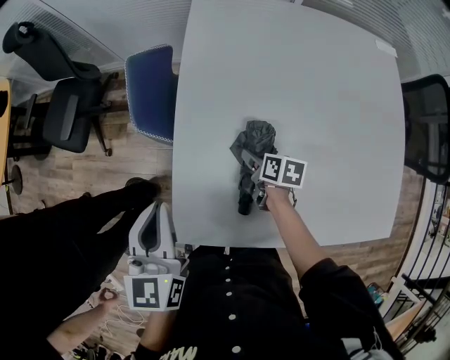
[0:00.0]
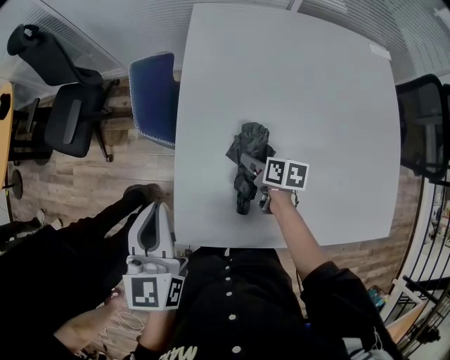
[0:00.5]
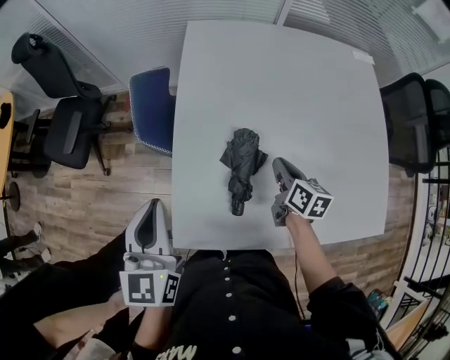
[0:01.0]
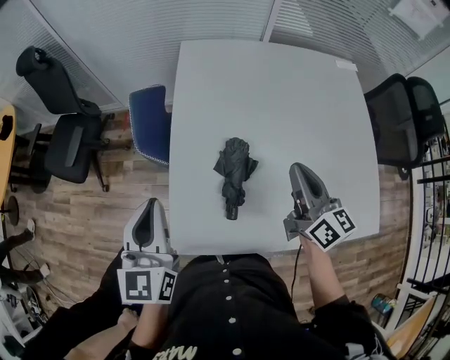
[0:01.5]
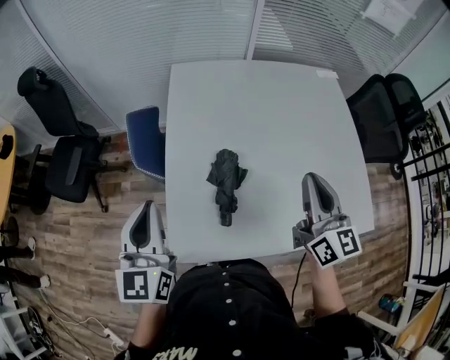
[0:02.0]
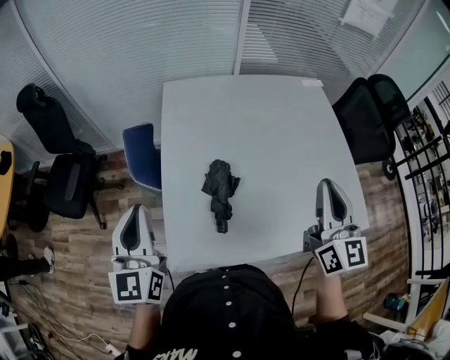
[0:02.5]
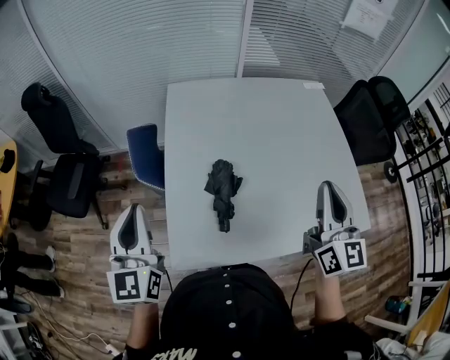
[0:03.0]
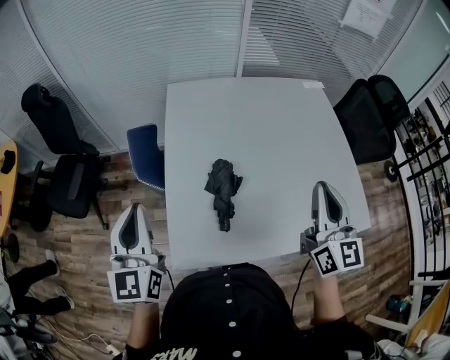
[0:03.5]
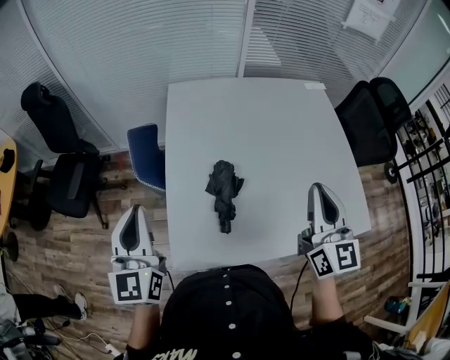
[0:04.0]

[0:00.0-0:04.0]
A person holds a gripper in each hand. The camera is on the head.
0:00.0 to 0:02.0: The right gripper shifts roughly 35 cm upward, points its fingers some 50 degrees further upward, and closes. The left gripper is displaced upward by roughly 10 cm.
0:02.0 to 0:04.0: The right gripper ends up some 5 cm from where it was.

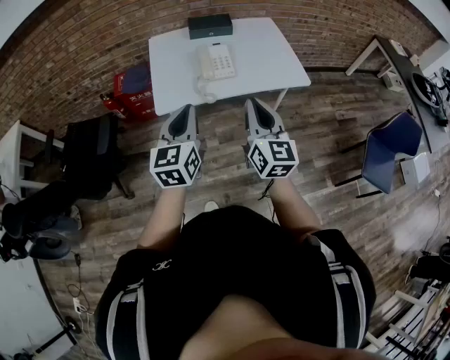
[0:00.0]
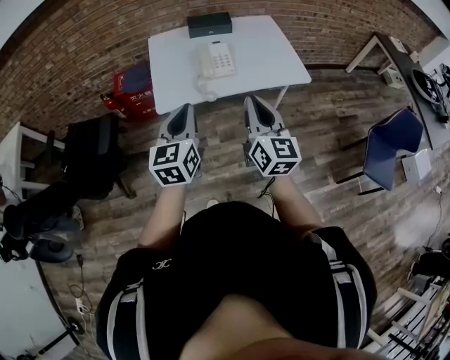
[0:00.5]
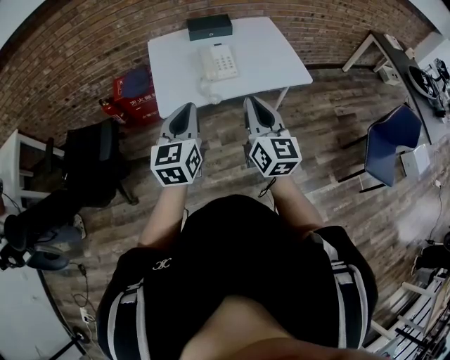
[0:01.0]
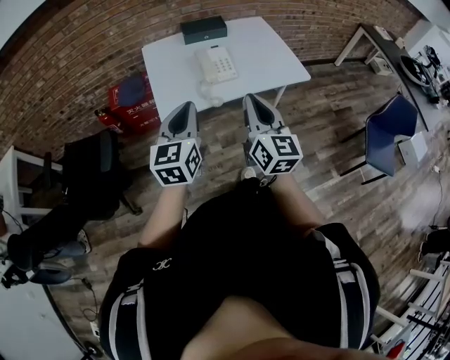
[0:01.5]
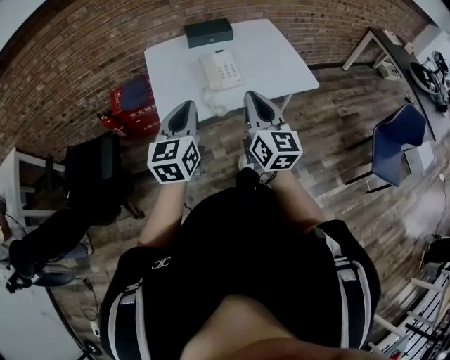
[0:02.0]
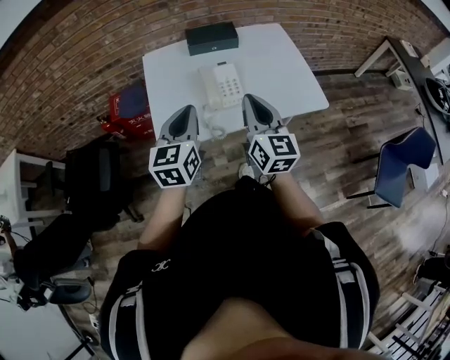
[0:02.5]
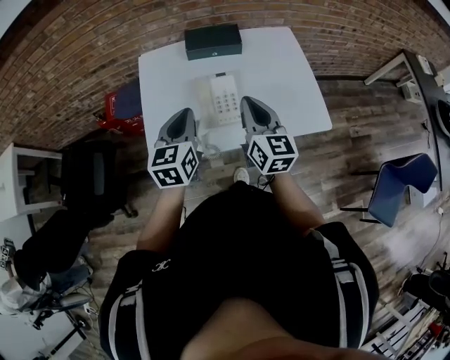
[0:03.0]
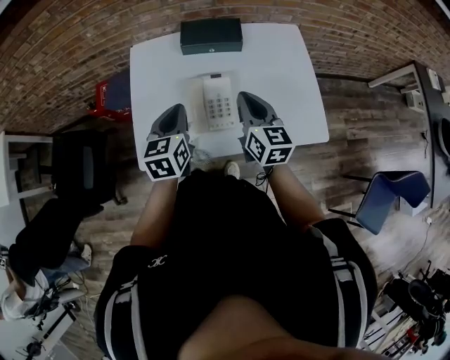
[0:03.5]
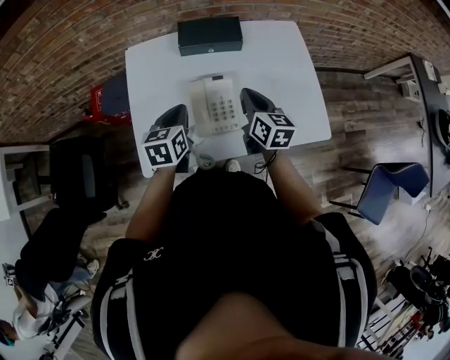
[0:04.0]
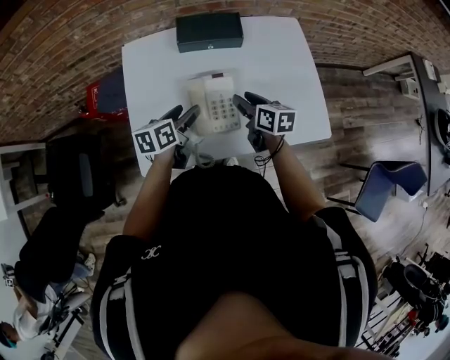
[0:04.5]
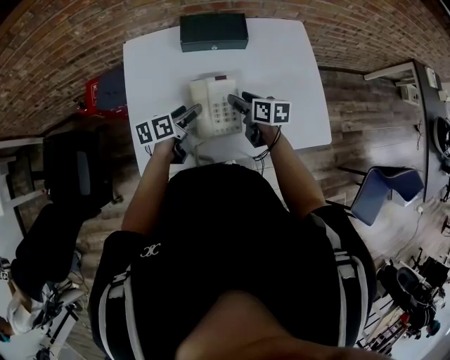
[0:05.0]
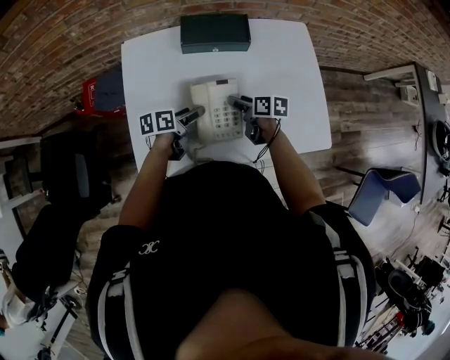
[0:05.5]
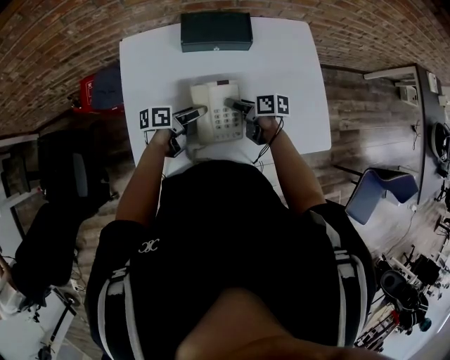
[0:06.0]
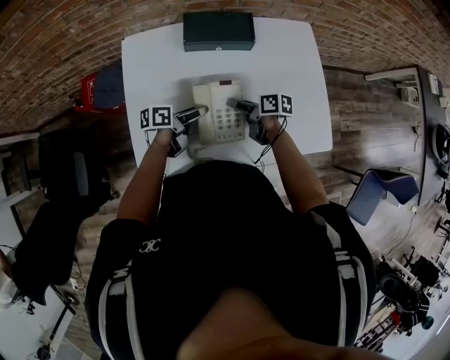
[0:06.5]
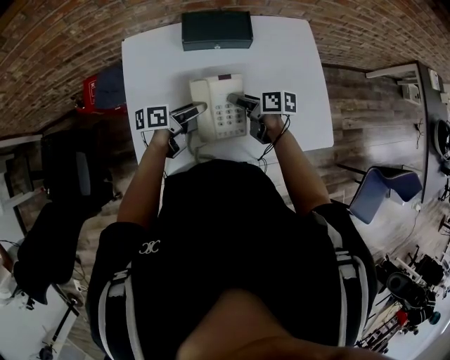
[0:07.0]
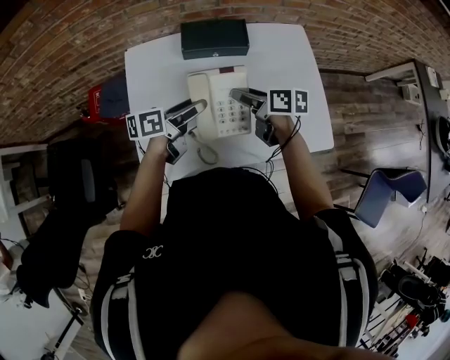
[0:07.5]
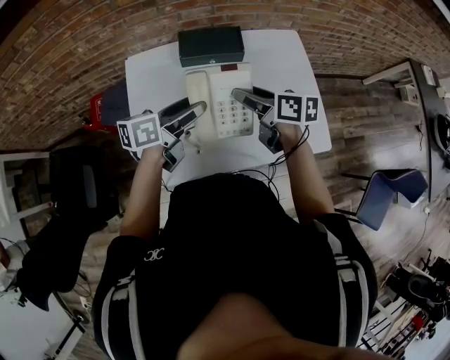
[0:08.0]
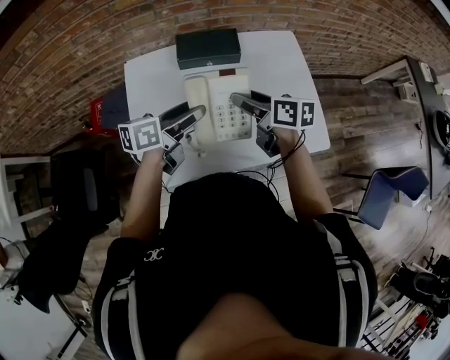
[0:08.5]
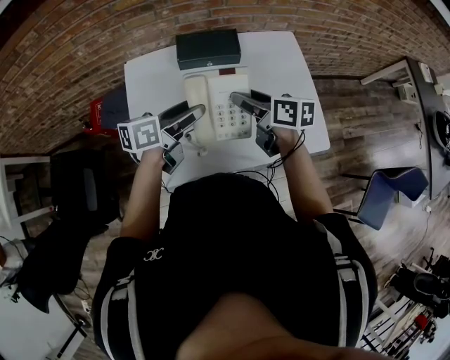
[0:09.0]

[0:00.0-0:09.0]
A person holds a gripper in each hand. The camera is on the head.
0:00.0 to 0:02.0: Both grippers travel together forward and to the left, roughly 10 cm.
0:02.0 to 0:04.5: The grippers both shift forward and downward by about 40 cm. The left gripper rotates approximately 40 degrees, and opens, while the right gripper angles its fingers downward, by about 30 degrees, and opens its fingers.
0:04.5 to 0:07.0: The right gripper heads downward, covering roughly 5 cm, and changes its angle by roughly 20 degrees; the left gripper turns by about 30 degrees.
0:07.0 to 0:09.0: Both grippers move upward, roughly 15 cm. The left gripper changes its angle by about 20 degrees.

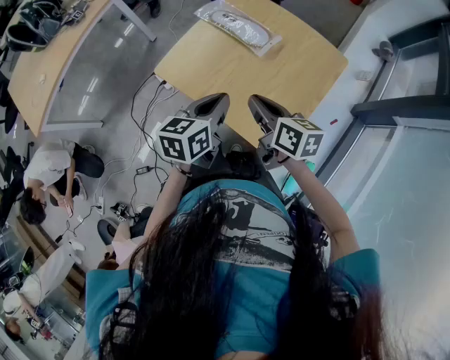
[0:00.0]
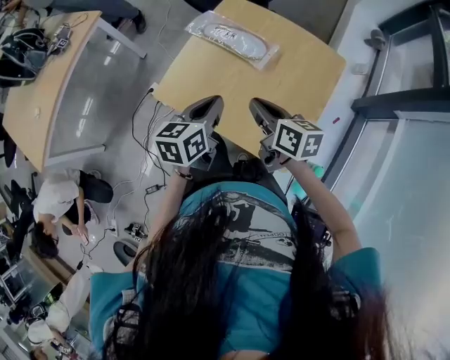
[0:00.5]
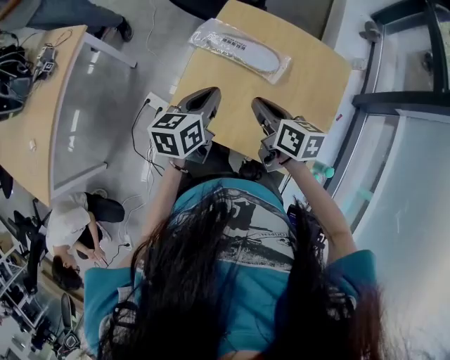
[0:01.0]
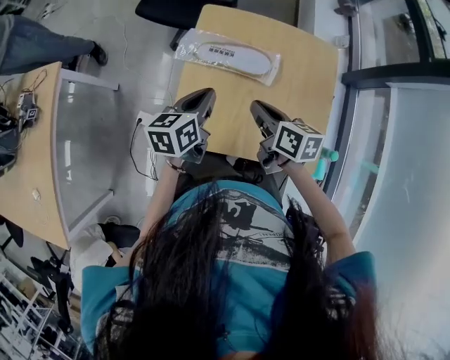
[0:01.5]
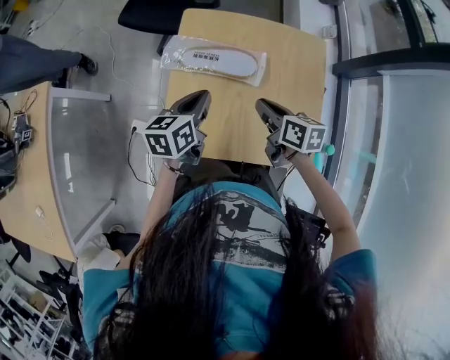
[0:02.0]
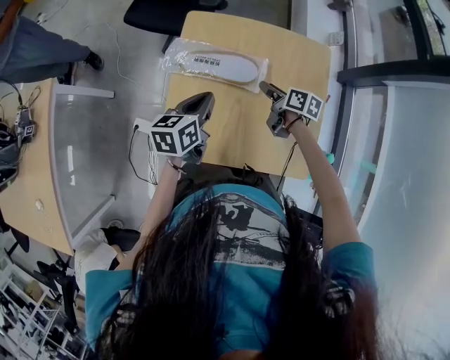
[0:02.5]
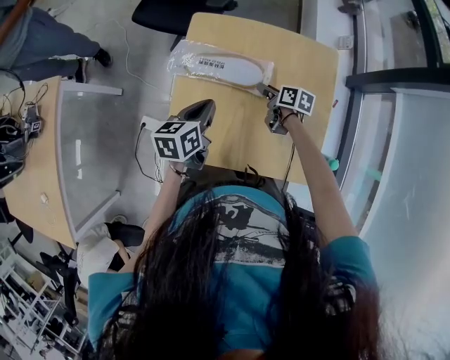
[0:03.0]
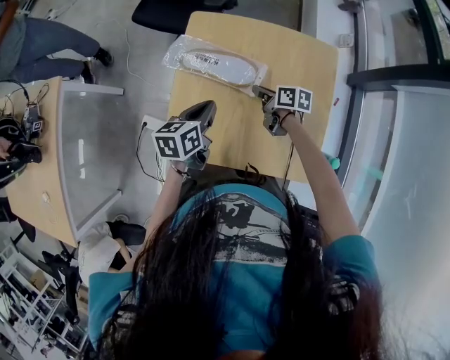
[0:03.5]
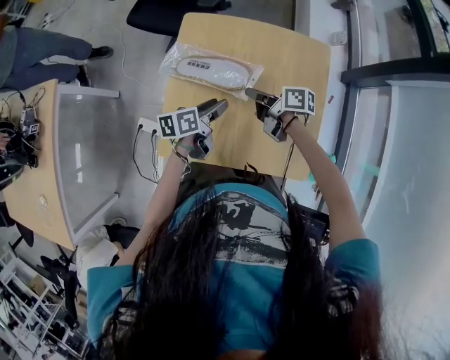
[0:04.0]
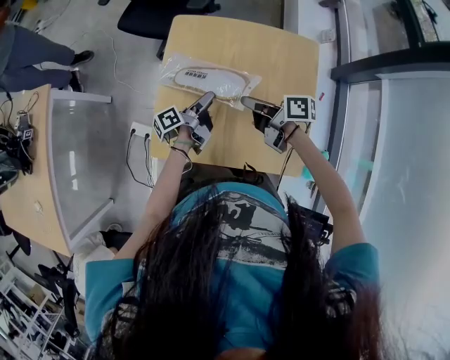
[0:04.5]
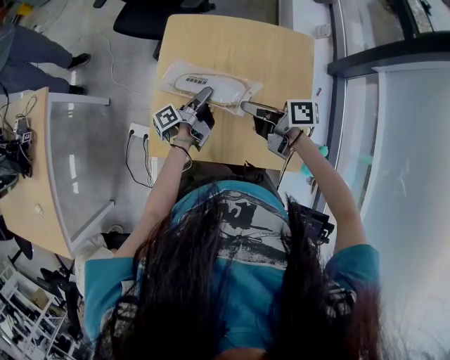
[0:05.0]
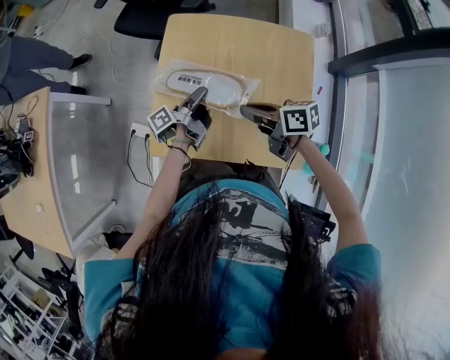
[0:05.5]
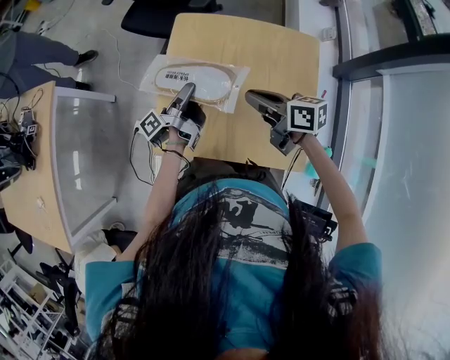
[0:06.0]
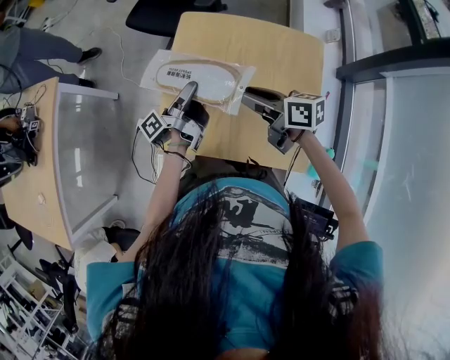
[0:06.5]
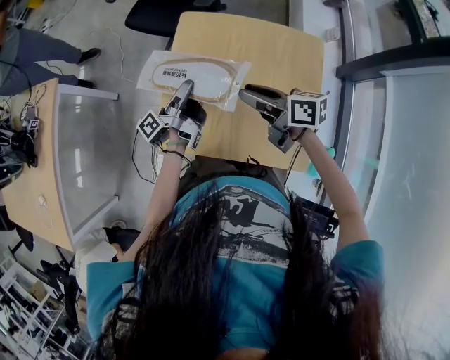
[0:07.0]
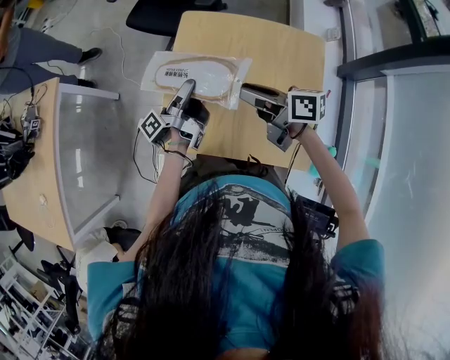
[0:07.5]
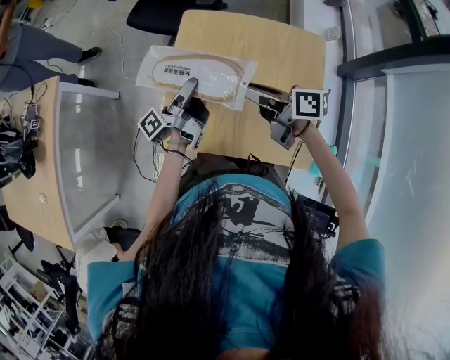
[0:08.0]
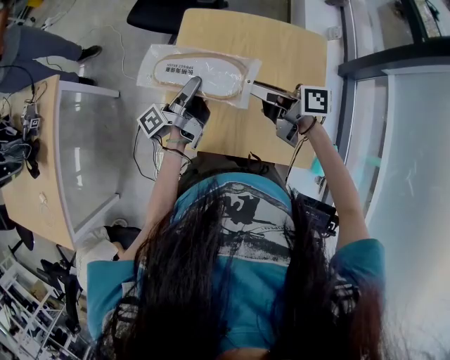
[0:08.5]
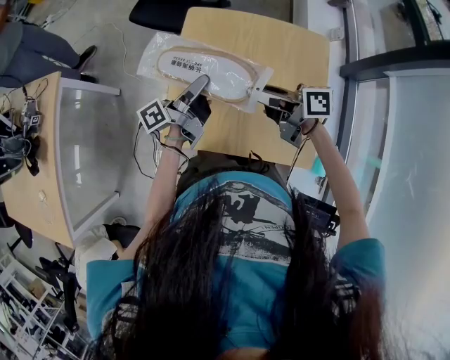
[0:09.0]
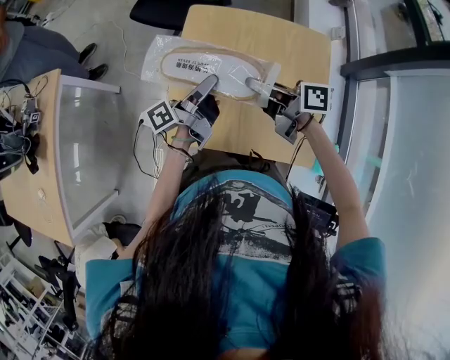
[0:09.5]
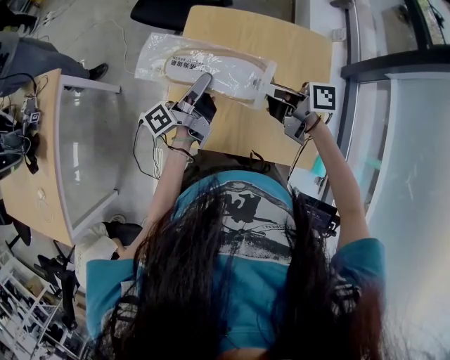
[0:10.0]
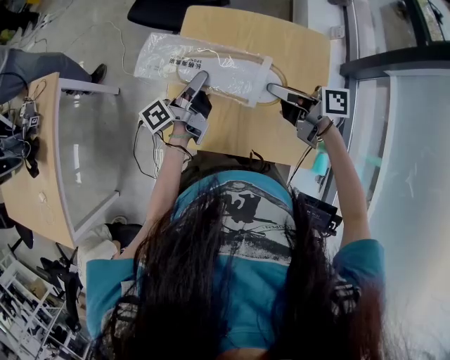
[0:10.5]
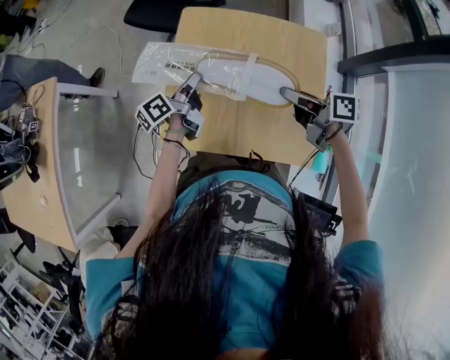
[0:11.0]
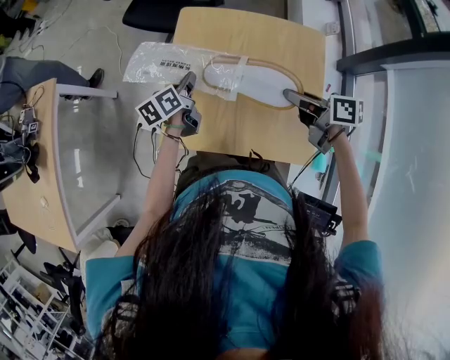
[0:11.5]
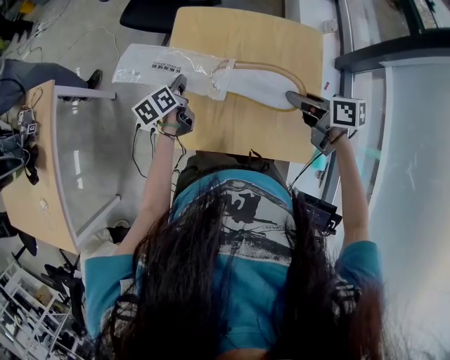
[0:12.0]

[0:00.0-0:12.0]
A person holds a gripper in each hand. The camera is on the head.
0:00.0 to 0:02.0: The right gripper changes place by some 20 cm, and changes its angle by some 30 degrees. The left gripper changes place by about 30 cm, and changes its angle by some 30 degrees.
0:02.0 to 0:04.0: The right gripper moves downward and forward, about 10 cm, swivels approximately 30 degrees, and opens and closes again. The left gripper shifts approximately 10 cm downward and to the right, turns by about 20 degrees, and opens.
0:04.0 to 0:06.0: The left gripper moves to the left, some 5 cm, and swivels approximately 50 degrees, while the right gripper is displaced upward and backward by approximately 10 cm, and rotates roughly 30 degrees.
0:06.0 to 0:08.0: The right gripper opens.
0:08.0 to 0:10.0: The grippers move only a little.
0:10.0 to 0:12.0: The left gripper shifts some 10 cm downward, and points its fingers roughly 40 degrees further downward; the right gripper shifts approximately 15 cm to the right and backward, and swivels about 30 degrees.

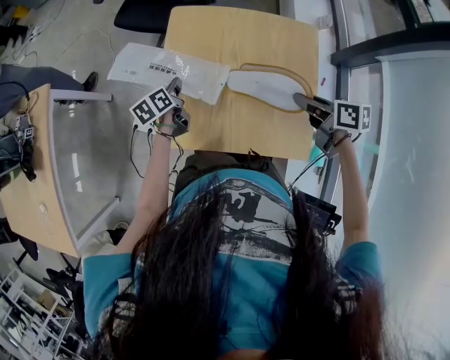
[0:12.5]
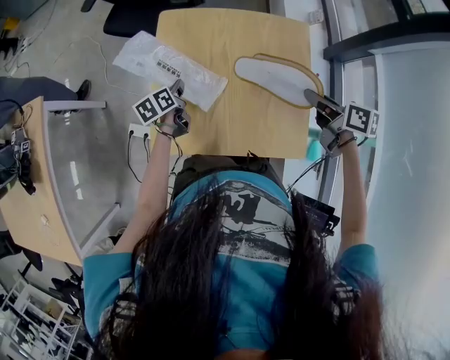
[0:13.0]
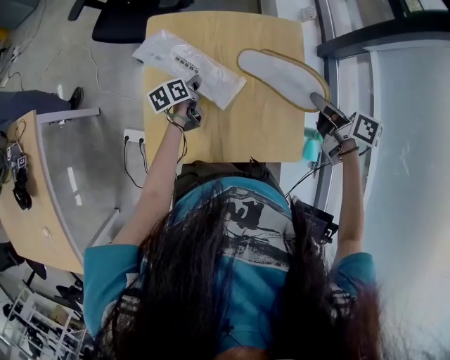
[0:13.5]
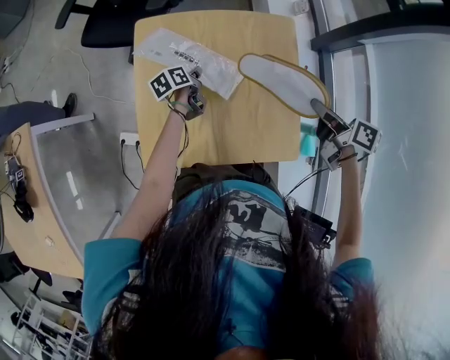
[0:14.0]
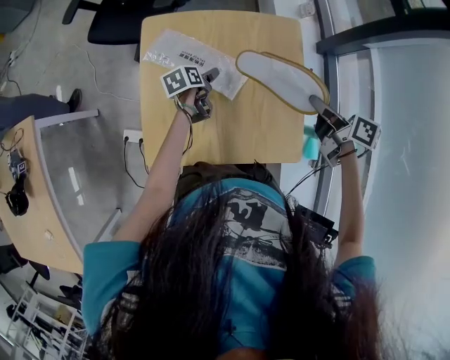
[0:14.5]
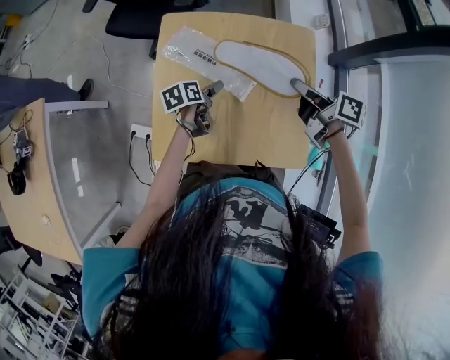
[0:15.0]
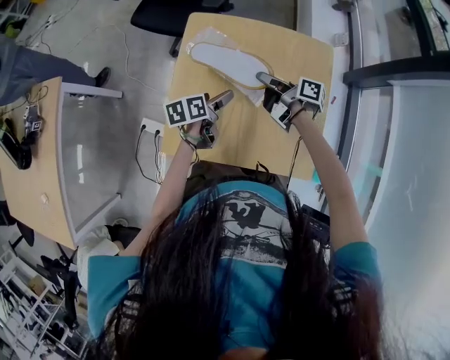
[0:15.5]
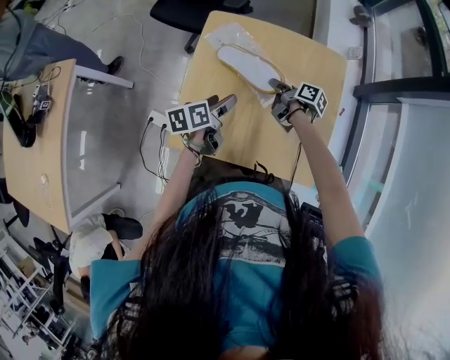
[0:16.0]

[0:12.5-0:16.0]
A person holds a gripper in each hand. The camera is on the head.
0:12.5 to 0:14.5: The left gripper goes some 20 cm to the right and downward, swivels about 20 degrees, and opens up. Meanwhile the right gripper goes approximately 10 cm to the right, and swivels about 20 degrees.
0:14.5 to 0:16.0: The right gripper goes roughly 30 cm to the left, downward and forward, and turns by roughly 20 degrees, while the left gripper moves backward, upward and to the left, about 15 cm.
